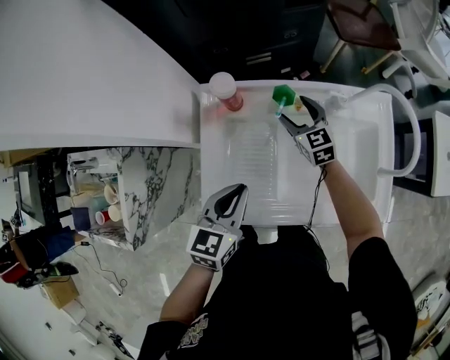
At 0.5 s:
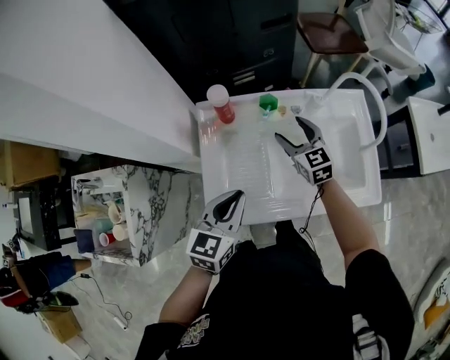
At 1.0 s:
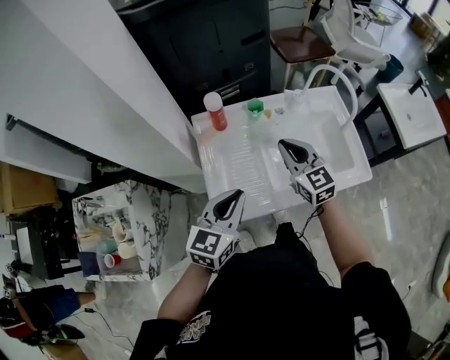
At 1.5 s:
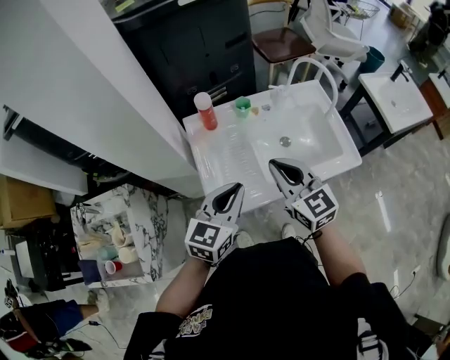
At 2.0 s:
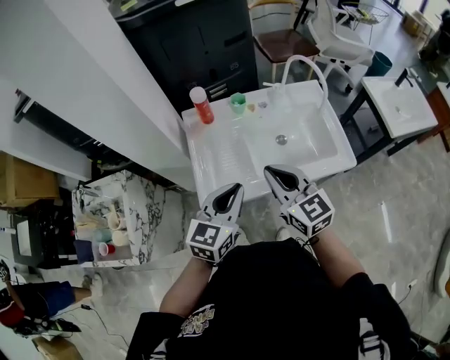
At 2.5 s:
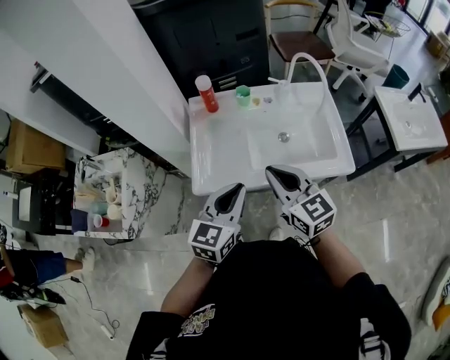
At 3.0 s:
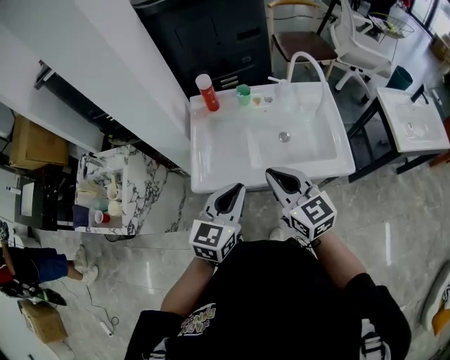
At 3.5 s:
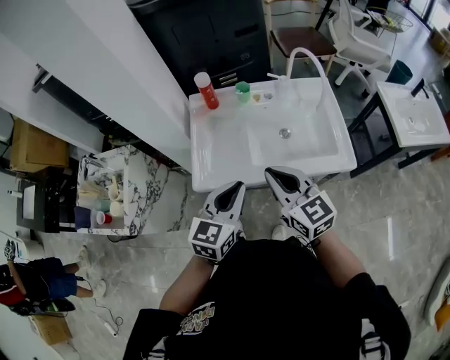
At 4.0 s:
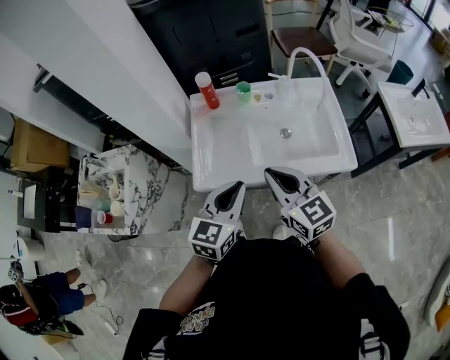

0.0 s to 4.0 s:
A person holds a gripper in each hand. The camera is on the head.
0.0 to 2.0 s: The left gripper travels backward and upward by about 15 cm, and rotates some 20 degrees; the right gripper goes some 40 cm backward and upward, and closes its fingers.
2.0 to 4.0 s: The right gripper moves about 5 cm, while the left gripper ends up some 5 cm from where it was.

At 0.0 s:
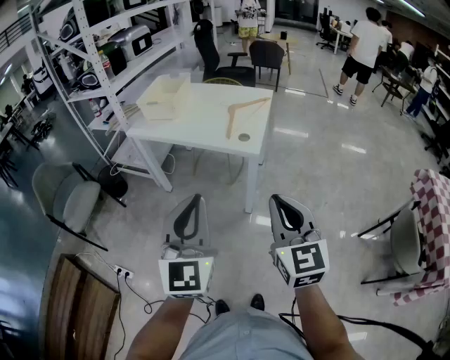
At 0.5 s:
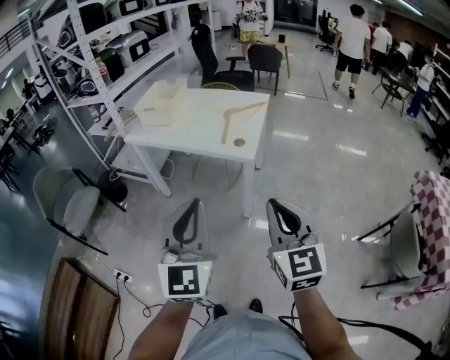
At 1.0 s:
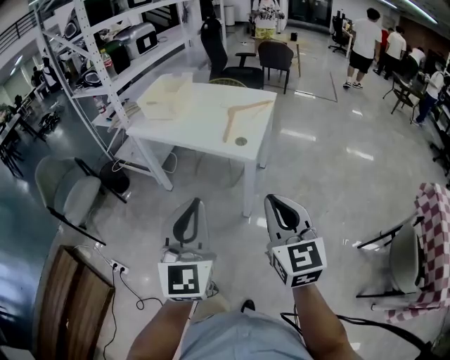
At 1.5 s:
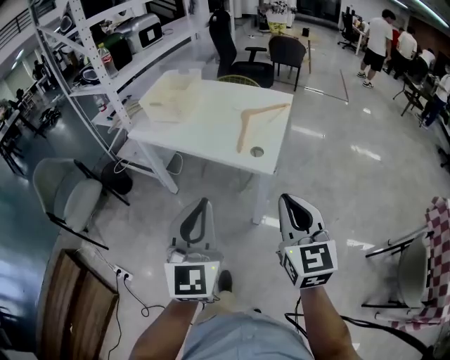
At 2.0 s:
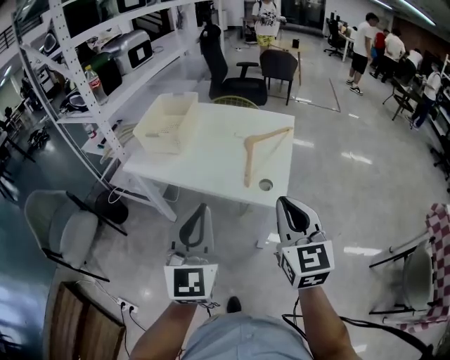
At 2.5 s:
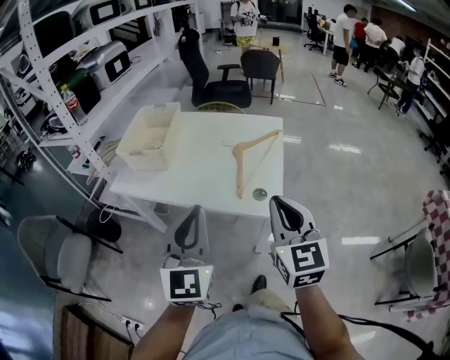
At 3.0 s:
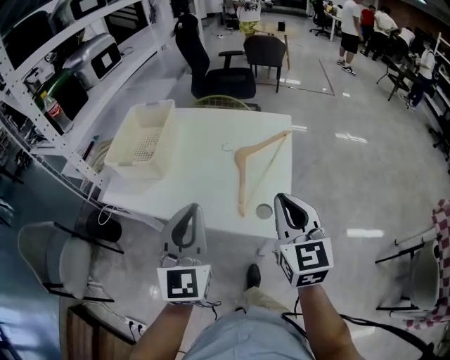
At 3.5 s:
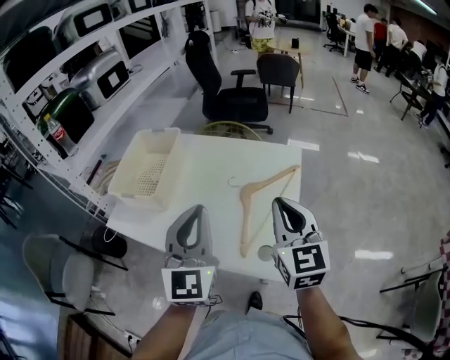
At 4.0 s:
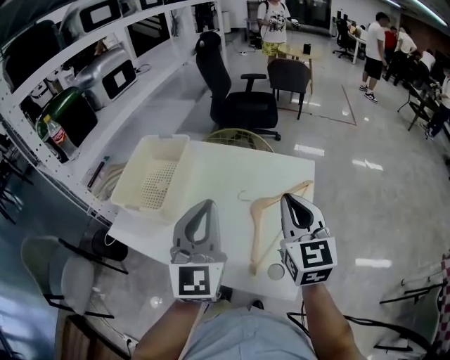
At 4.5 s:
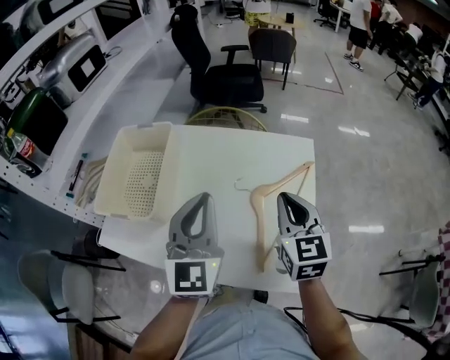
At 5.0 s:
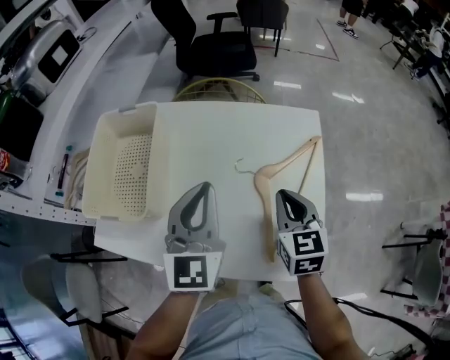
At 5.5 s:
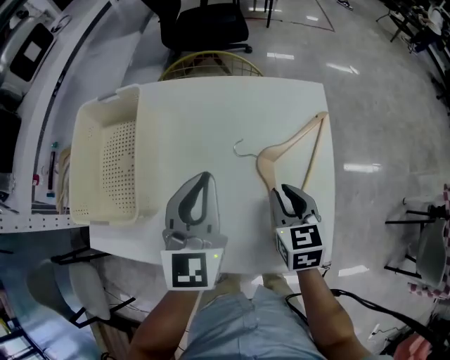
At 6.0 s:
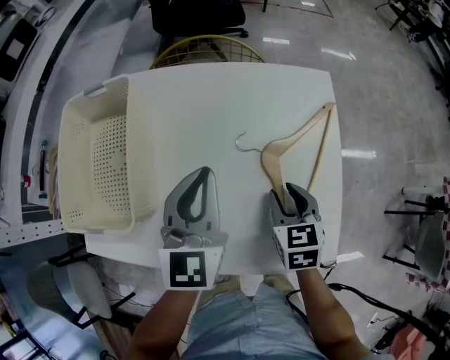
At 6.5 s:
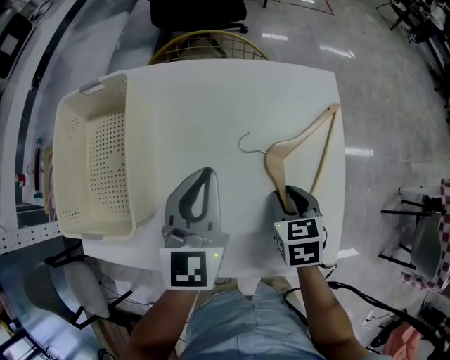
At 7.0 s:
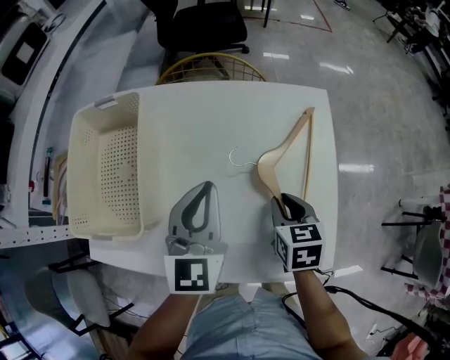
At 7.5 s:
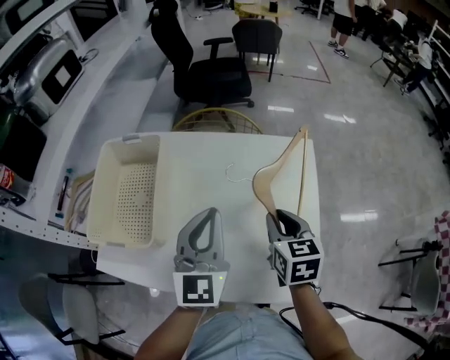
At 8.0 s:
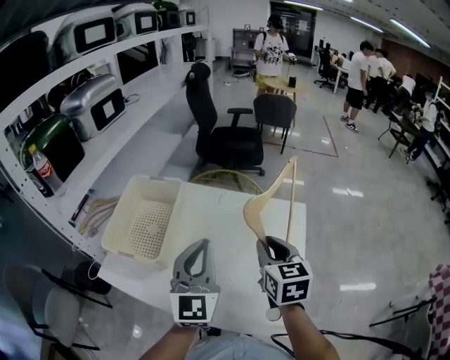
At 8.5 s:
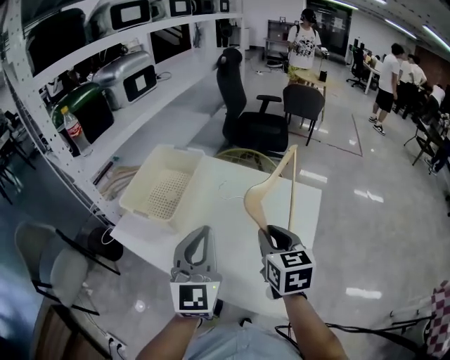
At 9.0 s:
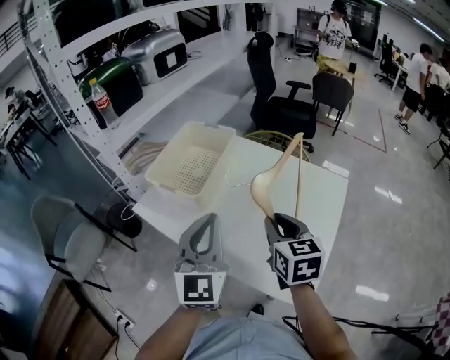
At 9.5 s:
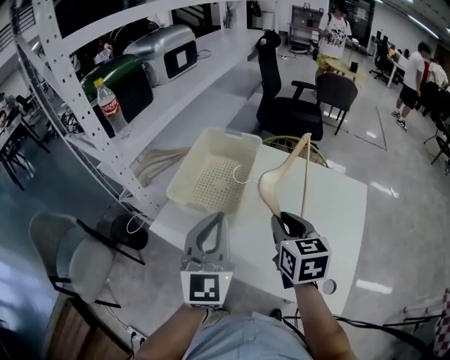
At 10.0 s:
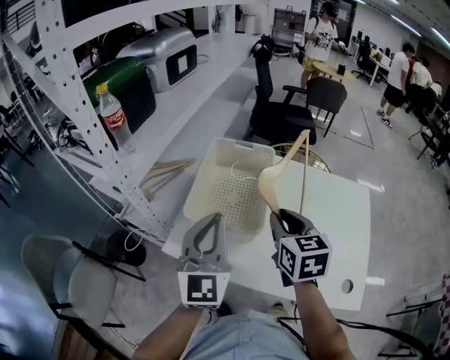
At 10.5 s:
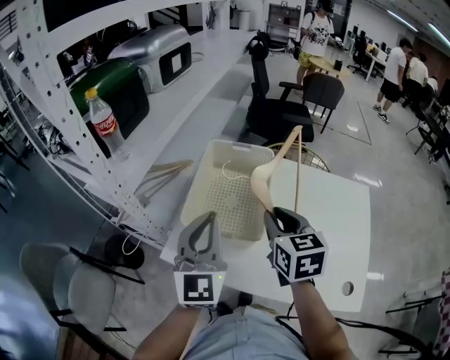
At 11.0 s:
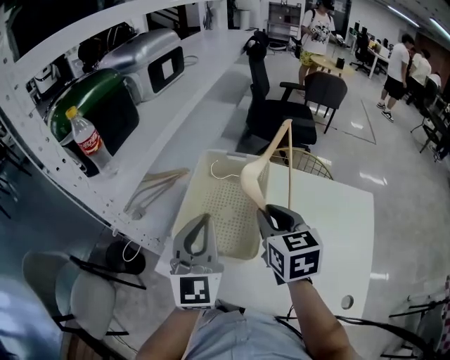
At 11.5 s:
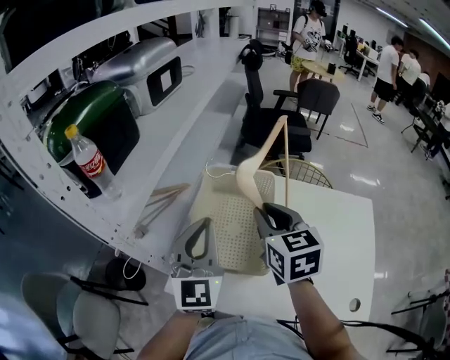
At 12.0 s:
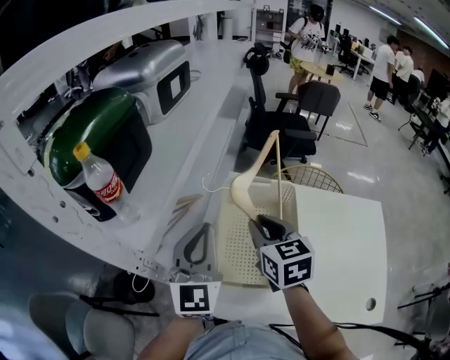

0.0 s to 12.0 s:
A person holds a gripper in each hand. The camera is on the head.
0.0 to 2.0 s: Both grippers travel together forward, about 25 cm.
2.0 to 4.0 s: Both grippers move forward, some 35 cm.
4.0 to 6.0 s: The left gripper is displaced downward and forward by approximately 20 cm, and rotates some 30 degrees. Meanwhile the right gripper heads downward, covering about 25 cm, angles its fingers downward, by approximately 40 degrees, and opens up.
6.0 to 8.0 s: The left gripper moves upward and backward, roughly 15 cm, and changes its angle by roughly 20 degrees. The right gripper goes roughly 20 cm upward, and swivels approximately 20 degrees.
8.0 to 10.0 s: The two grippers go some 30 cm to the left.
10.0 to 12.0 s: The two grippers go about 20 cm forward and to the left.

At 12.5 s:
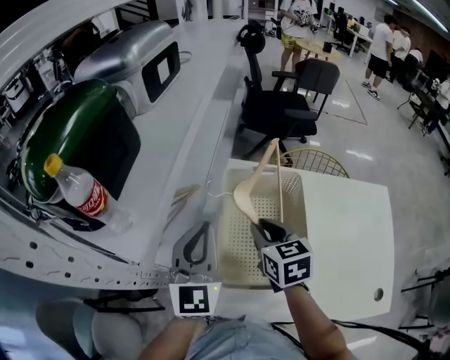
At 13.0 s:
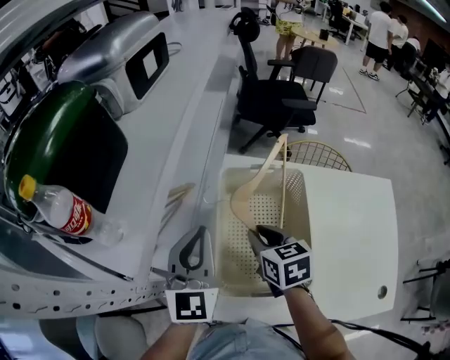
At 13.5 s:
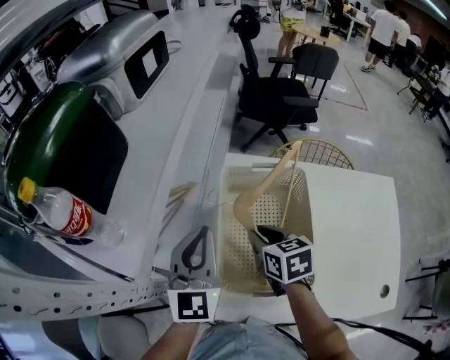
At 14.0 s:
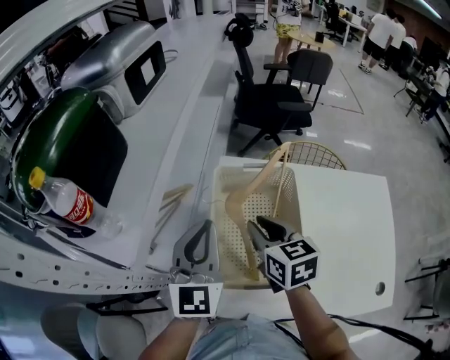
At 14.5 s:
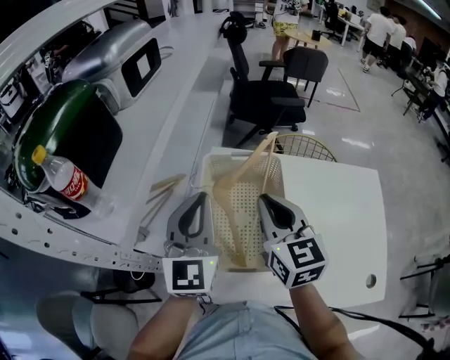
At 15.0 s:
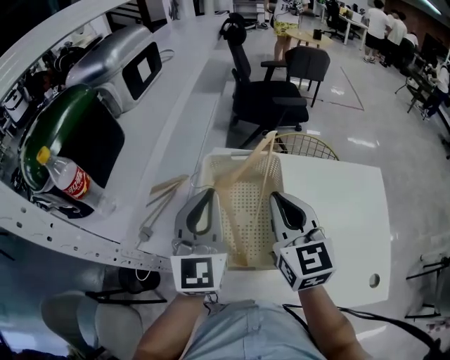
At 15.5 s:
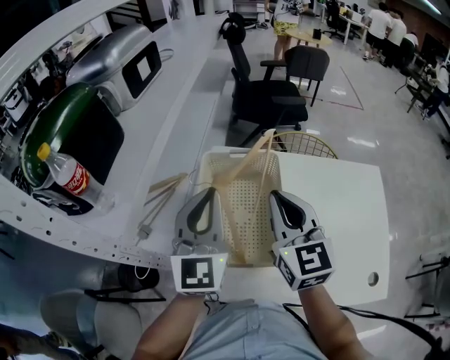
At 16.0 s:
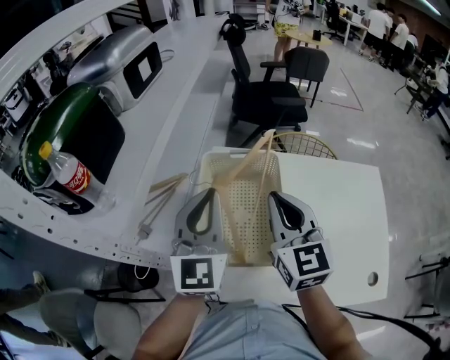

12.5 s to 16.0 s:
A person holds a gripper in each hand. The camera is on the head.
12.5 to 14.5 s: The left gripper travels to the right by approximately 5 cm; the right gripper is displaced upward and to the right by about 10 cm, and turns by about 20 degrees.
14.5 to 16.0 s: The grippers make only small movements.

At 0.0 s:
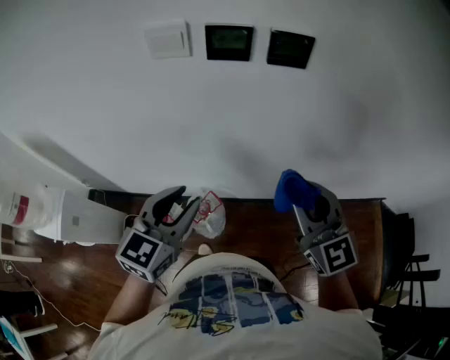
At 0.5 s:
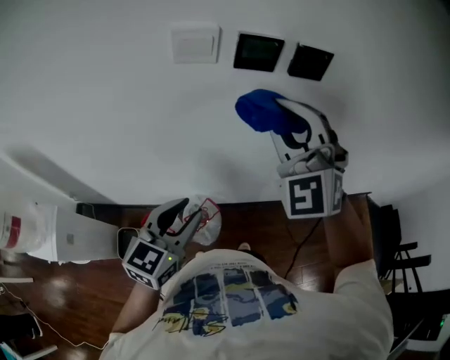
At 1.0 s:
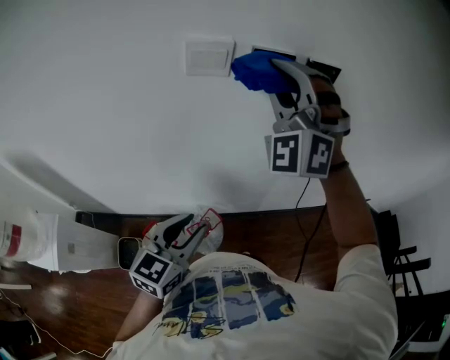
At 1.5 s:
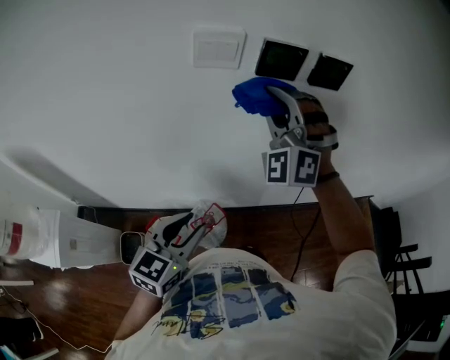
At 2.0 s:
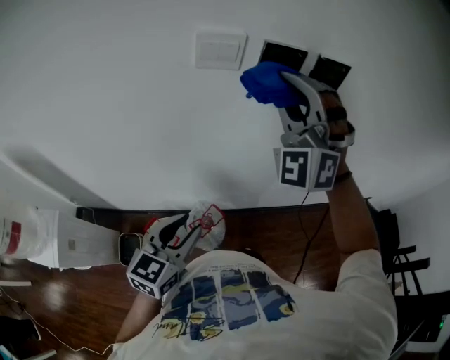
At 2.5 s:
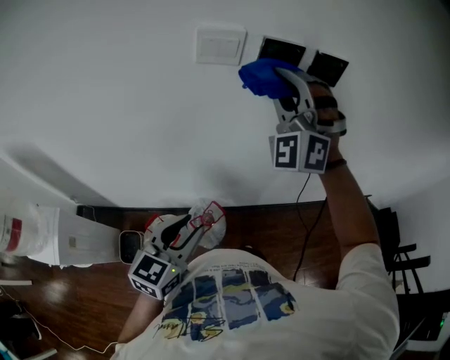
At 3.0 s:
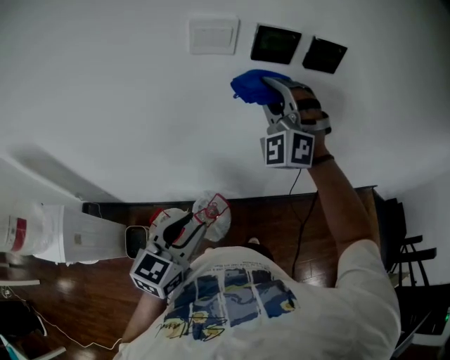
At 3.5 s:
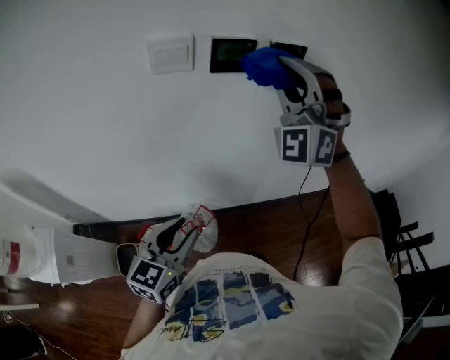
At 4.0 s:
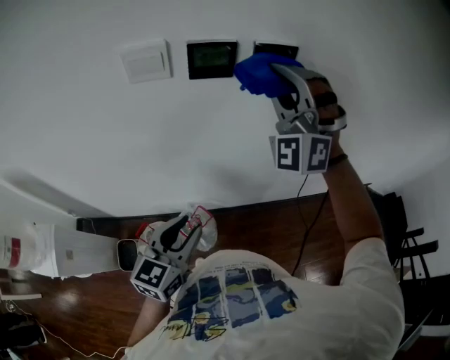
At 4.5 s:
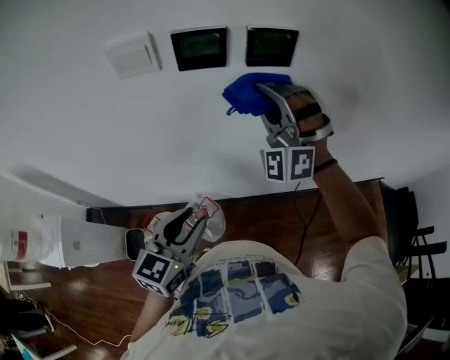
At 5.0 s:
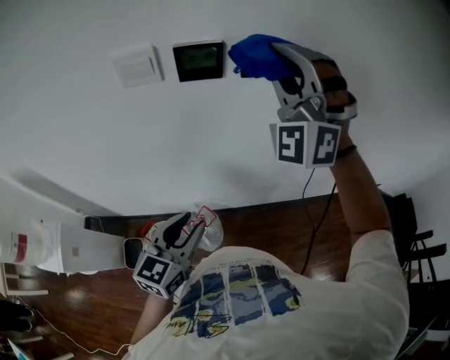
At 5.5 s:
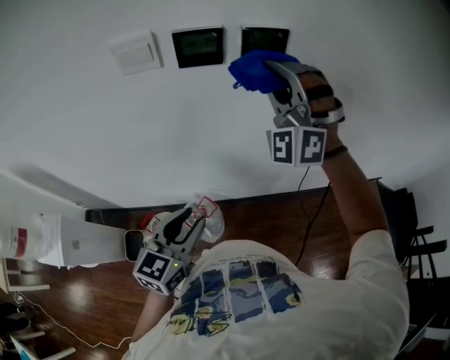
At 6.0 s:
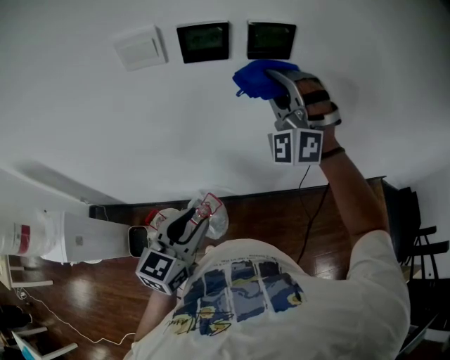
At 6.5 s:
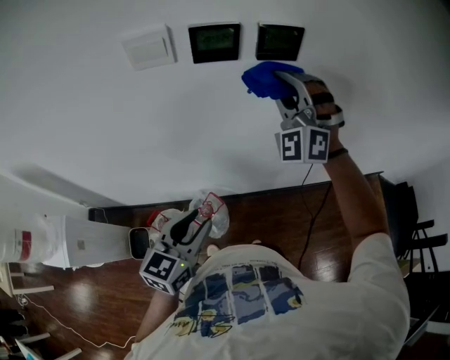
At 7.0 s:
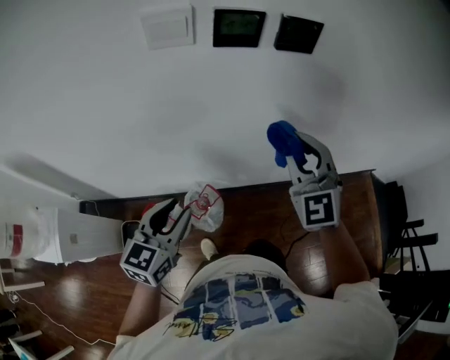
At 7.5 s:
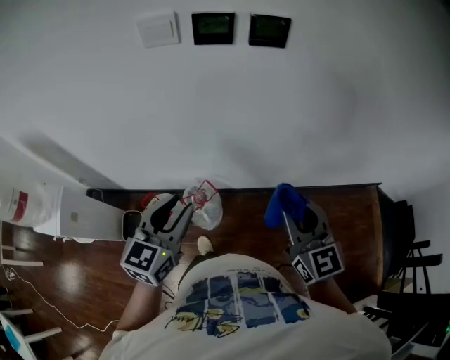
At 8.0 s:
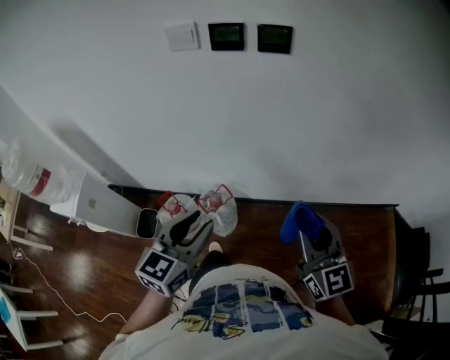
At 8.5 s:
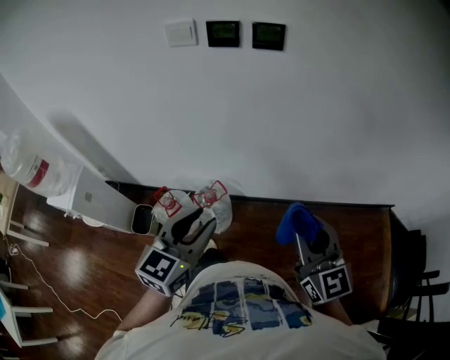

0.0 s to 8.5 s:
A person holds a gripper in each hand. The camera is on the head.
0.0 to 2.0 s: The left gripper travels to the left and downward by approximately 15 cm, while the right gripper shifts about 30 cm to the left, forward and upward, and rotates around the line of its fingers by roughly 70 degrees, counterclockwise from behind.
2.0 to 4.0 s: The right gripper moves to the right and forward, some 15 cm, while the left gripper shifts about 10 cm to the right.
4.0 to 6.5 s: The right gripper goes up and down, roughly 15 cm each way, reversing 2 times.
6.5 to 8.5 s: The left gripper shifts roughly 20 cm backward and to the right; the right gripper heads backward, covering roughly 40 cm, and rolls clockwise, seen from behind, by approximately 70 degrees.
